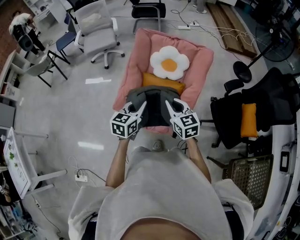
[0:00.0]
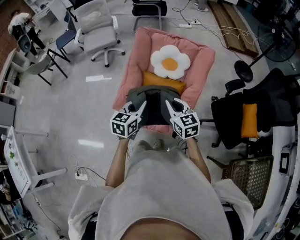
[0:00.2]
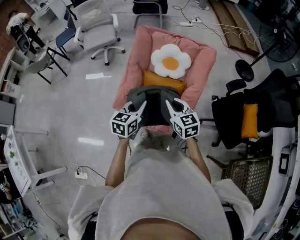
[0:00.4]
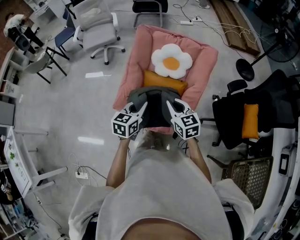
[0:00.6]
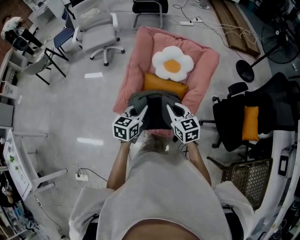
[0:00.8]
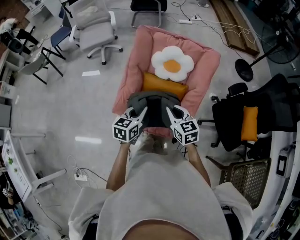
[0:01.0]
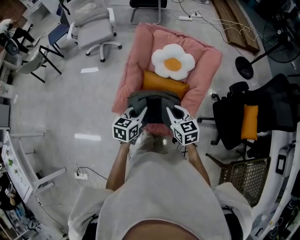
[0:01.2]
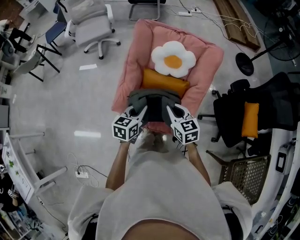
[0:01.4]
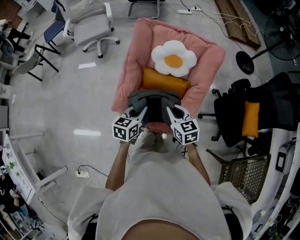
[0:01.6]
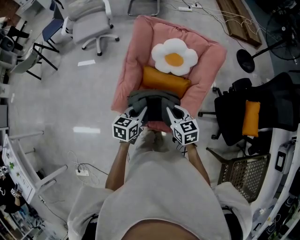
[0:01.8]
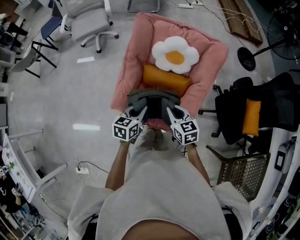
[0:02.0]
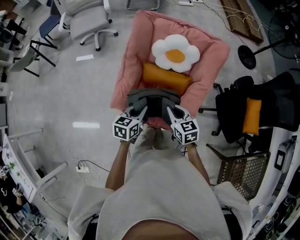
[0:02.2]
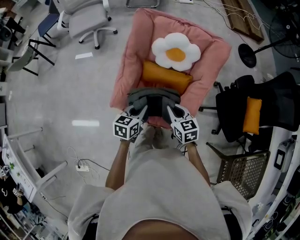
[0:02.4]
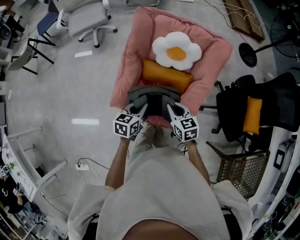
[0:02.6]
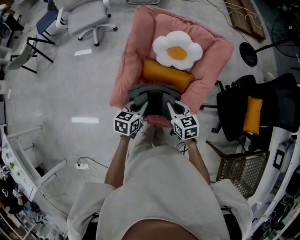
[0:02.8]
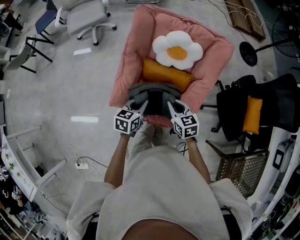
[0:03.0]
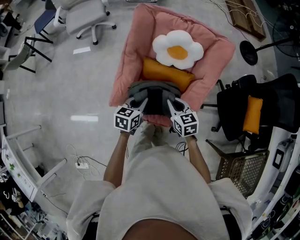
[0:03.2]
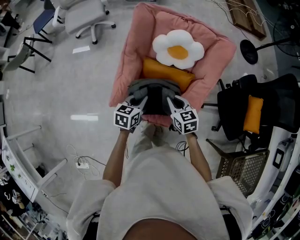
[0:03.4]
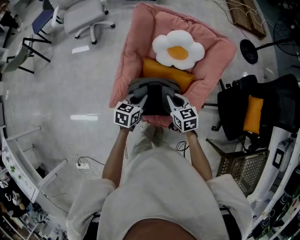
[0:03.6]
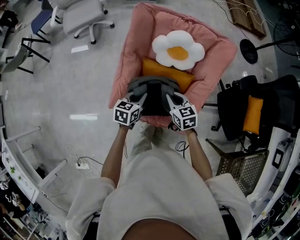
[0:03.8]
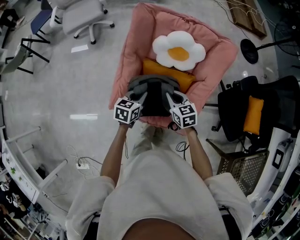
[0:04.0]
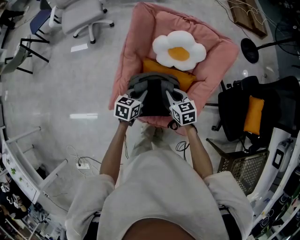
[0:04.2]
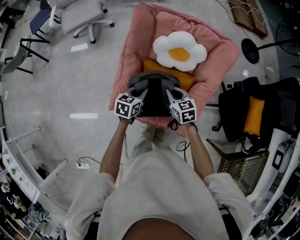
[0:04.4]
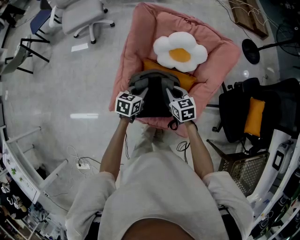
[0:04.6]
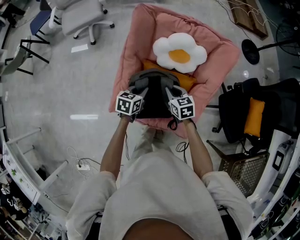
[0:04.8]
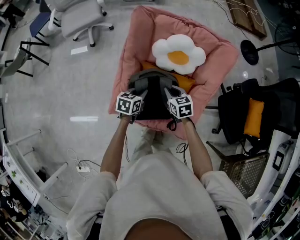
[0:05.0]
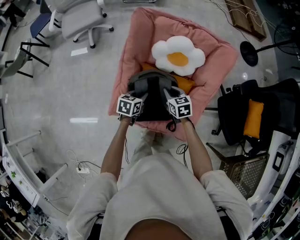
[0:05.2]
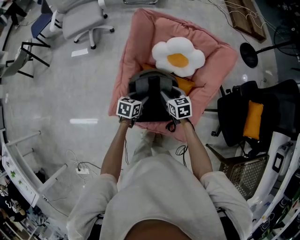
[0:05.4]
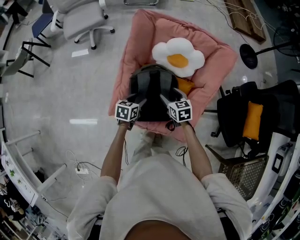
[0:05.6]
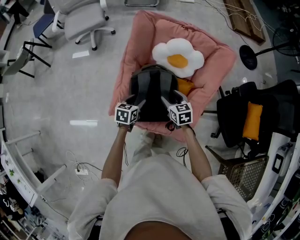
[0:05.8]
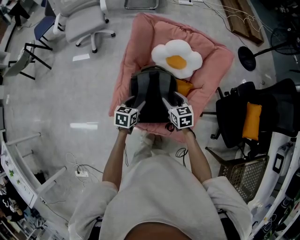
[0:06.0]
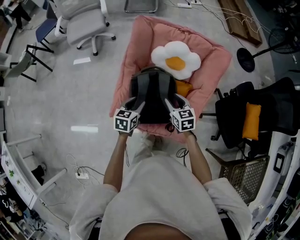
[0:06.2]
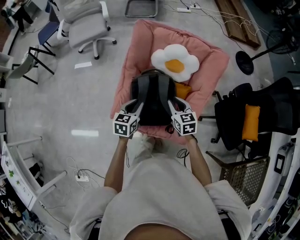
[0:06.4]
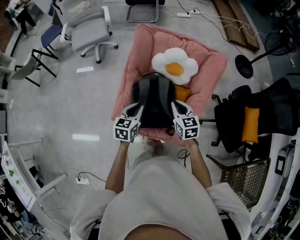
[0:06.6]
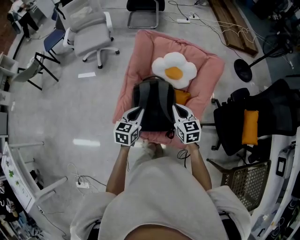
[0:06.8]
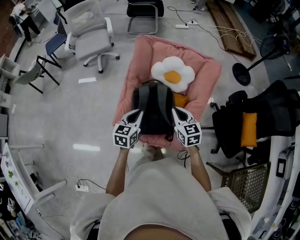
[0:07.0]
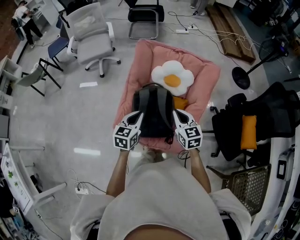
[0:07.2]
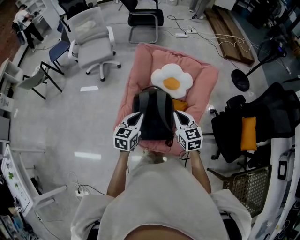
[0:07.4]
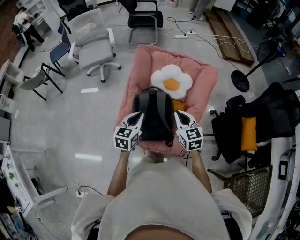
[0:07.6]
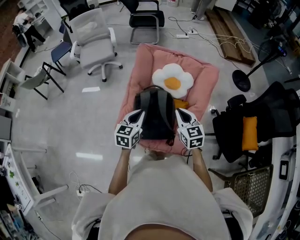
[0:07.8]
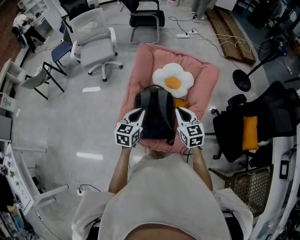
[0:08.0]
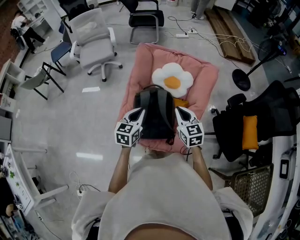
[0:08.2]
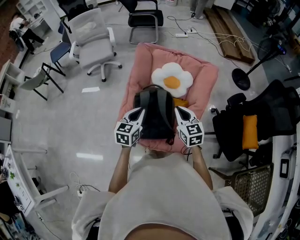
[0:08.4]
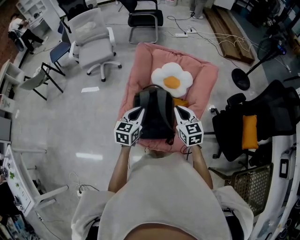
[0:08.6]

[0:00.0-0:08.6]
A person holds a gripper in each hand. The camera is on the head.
0:00.0 to 0:01.4: Both grippers travel together downward and forward, roughly 10 cm.
0:01.4 to 0:02.8: Both grippers move downward, about 10 cm.
0:02.8 to 0:04.4: Both grippers travel together forward and downward, about 10 cm.
0:04.4 to 0:05.8: The left gripper ends up approximately 5 cm from where it was, and opens its fingers, while the right gripper opens its fingers.
0:05.8 to 0:07.2: The left gripper shifts roughly 20 cm upward, swivels about 20 degrees, and closes up. The right gripper is displaced upward and backward by about 20 cm, rotates approximately 20 degrees, and closes up.
0:07.2 to 0:08.6: The grippers make only small movements.

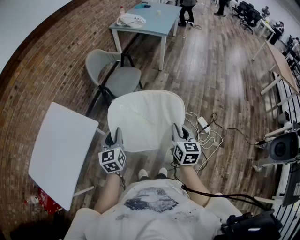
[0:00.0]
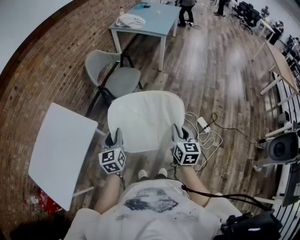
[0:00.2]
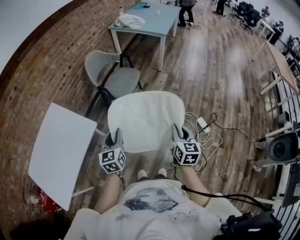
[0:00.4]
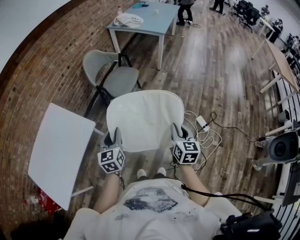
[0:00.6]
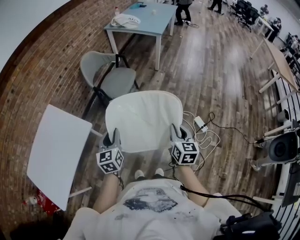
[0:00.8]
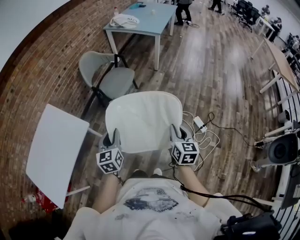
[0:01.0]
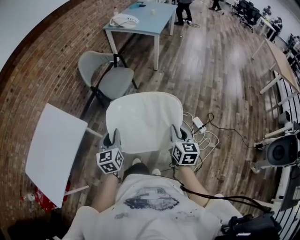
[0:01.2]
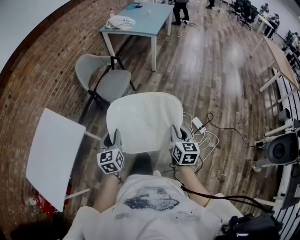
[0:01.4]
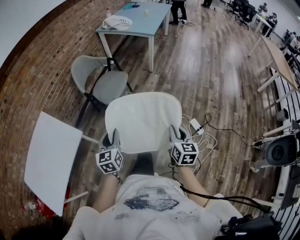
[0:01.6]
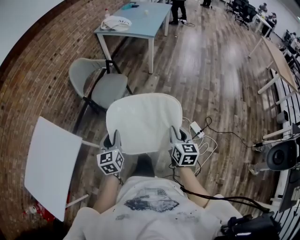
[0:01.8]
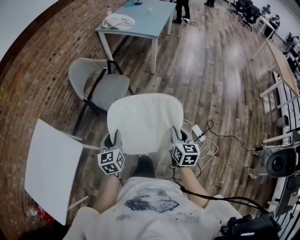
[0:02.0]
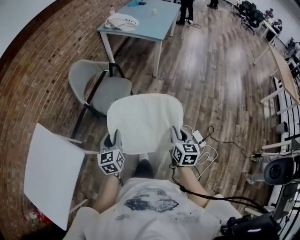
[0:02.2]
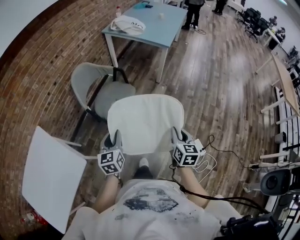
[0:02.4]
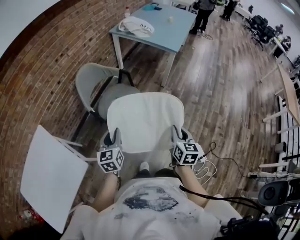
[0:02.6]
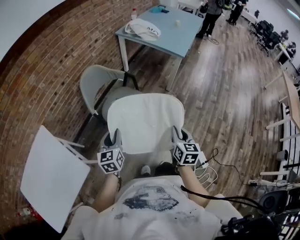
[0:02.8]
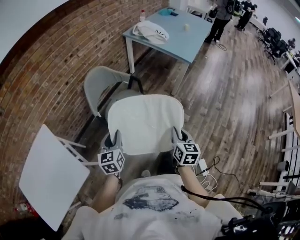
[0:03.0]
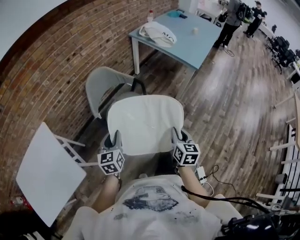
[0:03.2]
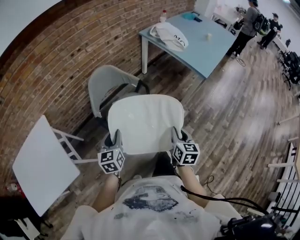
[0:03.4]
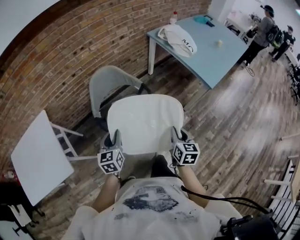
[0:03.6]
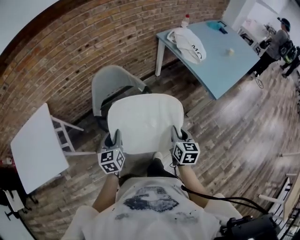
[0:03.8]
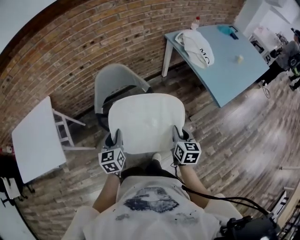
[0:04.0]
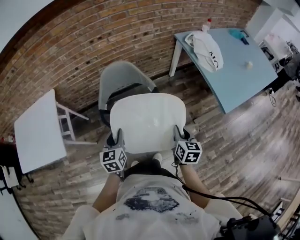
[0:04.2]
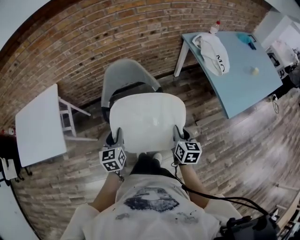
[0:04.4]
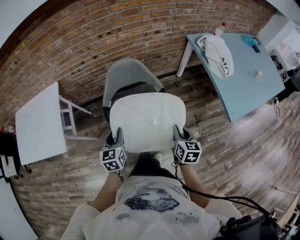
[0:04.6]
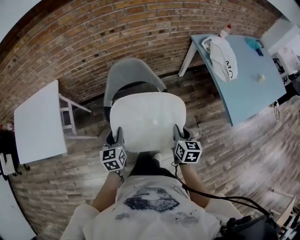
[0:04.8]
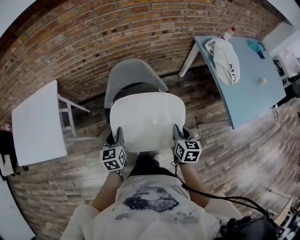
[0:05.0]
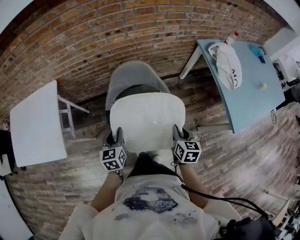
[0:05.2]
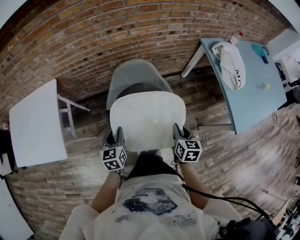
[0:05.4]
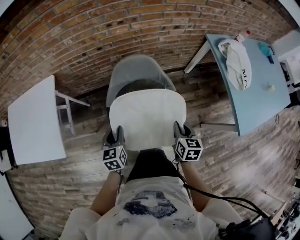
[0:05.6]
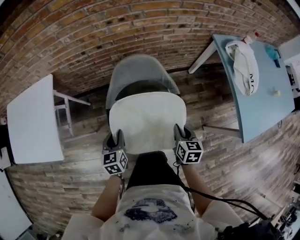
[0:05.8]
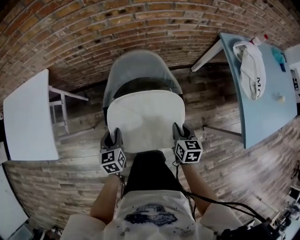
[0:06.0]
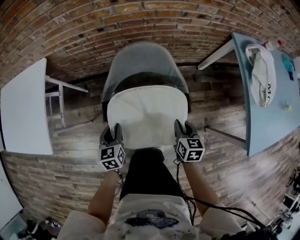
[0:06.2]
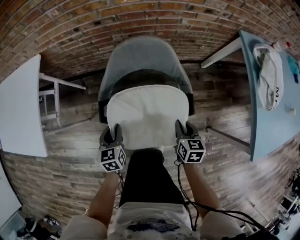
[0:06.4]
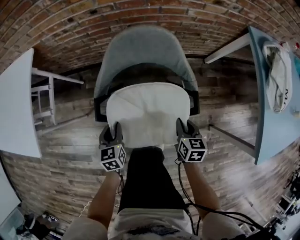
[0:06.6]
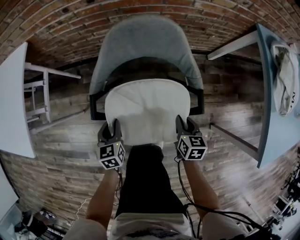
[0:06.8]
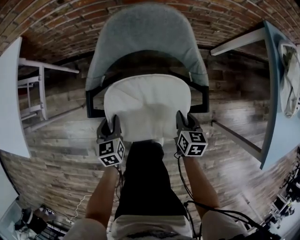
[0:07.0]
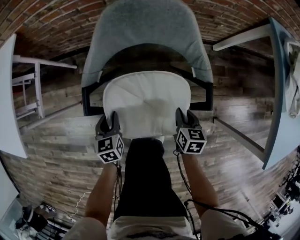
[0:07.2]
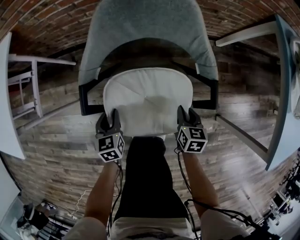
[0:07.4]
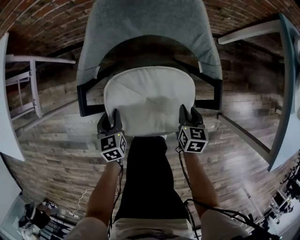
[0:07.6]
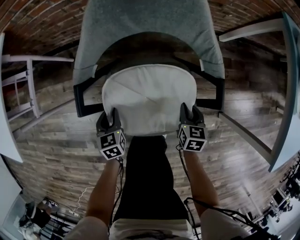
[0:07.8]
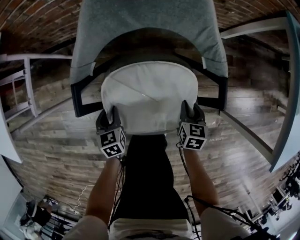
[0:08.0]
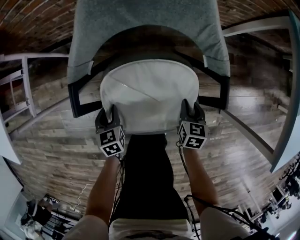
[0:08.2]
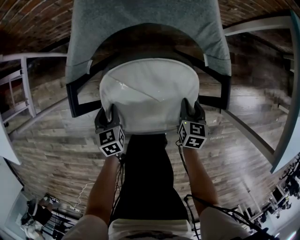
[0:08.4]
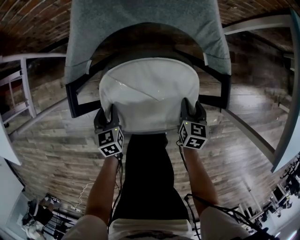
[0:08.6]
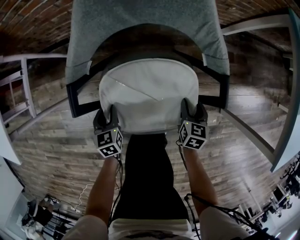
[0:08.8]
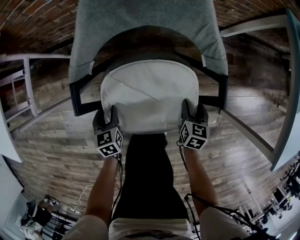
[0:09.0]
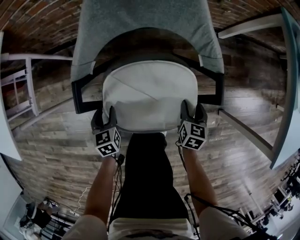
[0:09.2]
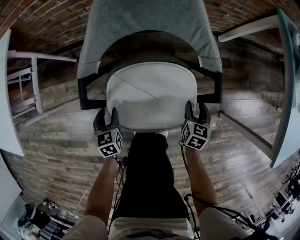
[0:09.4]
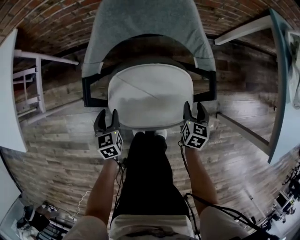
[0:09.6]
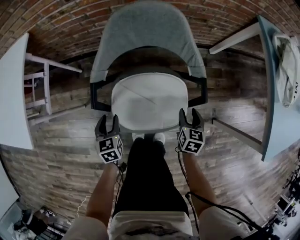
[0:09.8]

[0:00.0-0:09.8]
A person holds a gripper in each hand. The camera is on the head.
0:00.0 to 0:01.4: The two grippers go about 10 cm to the right.
0:01.4 to 0:02.8: Both grippers travel together forward, roughly 40 cm.
0:02.8 to 0:04.2: The left gripper changes place by roughly 25 cm, and turns by roughly 40 degrees. The right gripper changes place by some 40 cm, and changes its angle by approximately 40 degrees.
0:04.2 to 0:05.6: The left gripper heads forward, to the left and downward, covering about 15 cm. The right gripper travels forward and to the left by about 20 cm.
0:05.6 to 0:07.0: Both grippers travel together downward, some 30 cm.
0:07.0 to 0:08.4: The two grippers go some 10 cm downward.
0:08.4 to 0:09.8: The grippers both shift upward by roughly 10 cm. The right gripper opens.

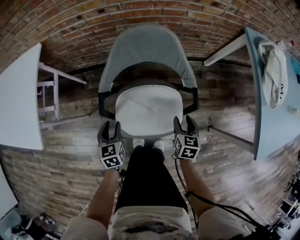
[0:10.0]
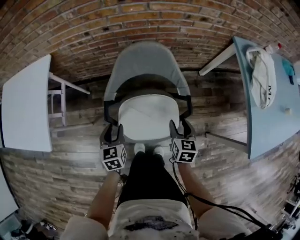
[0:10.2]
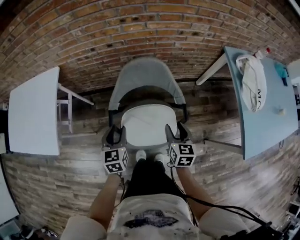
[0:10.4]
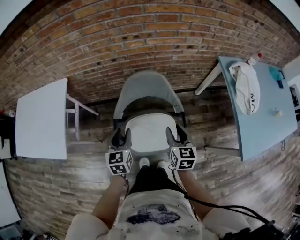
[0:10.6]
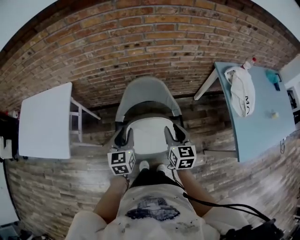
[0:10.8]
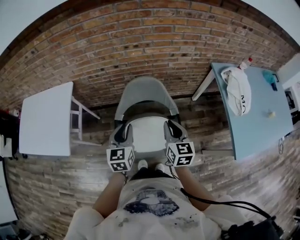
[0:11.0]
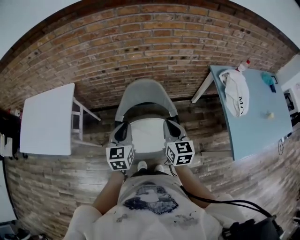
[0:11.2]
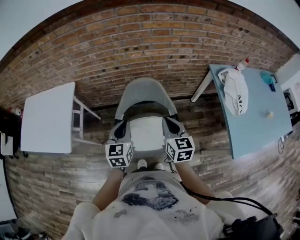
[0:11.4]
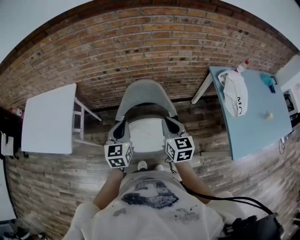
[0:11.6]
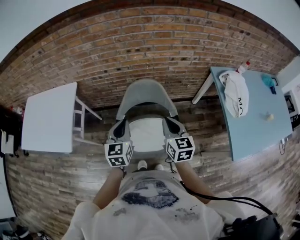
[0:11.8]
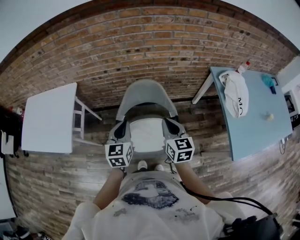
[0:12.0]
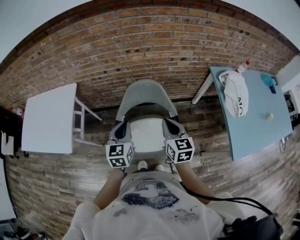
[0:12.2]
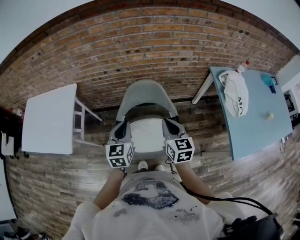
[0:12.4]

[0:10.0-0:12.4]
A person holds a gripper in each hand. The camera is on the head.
0:10.0 to 0:11.2: The two grippers go about 40 cm upward. The right gripper changes its angle by approximately 30 degrees, and closes. Meanwhile the left gripper swivels roughly 20 degrees, and closes up.
0:11.2 to 0:12.4: The grippers make only small movements.

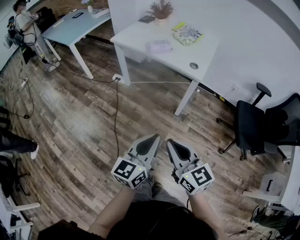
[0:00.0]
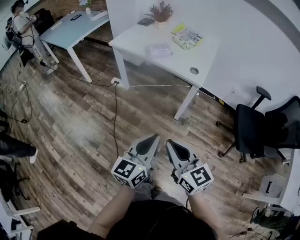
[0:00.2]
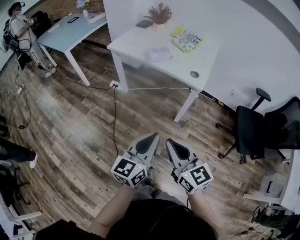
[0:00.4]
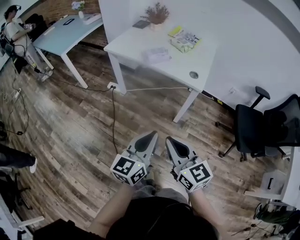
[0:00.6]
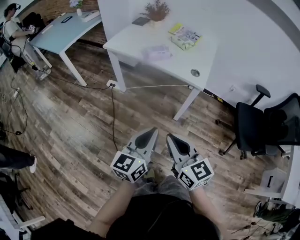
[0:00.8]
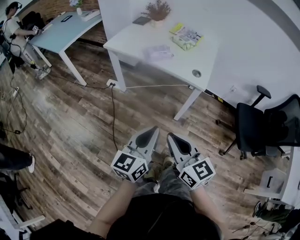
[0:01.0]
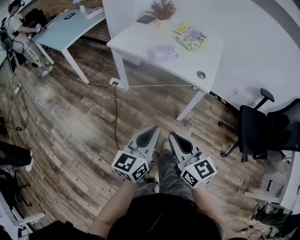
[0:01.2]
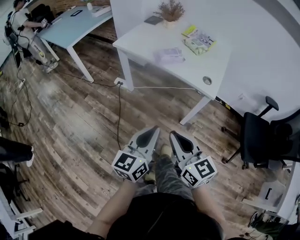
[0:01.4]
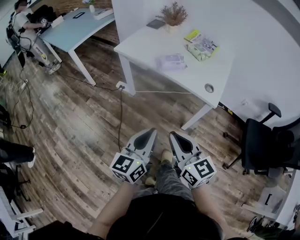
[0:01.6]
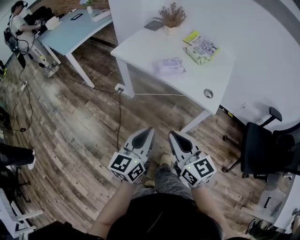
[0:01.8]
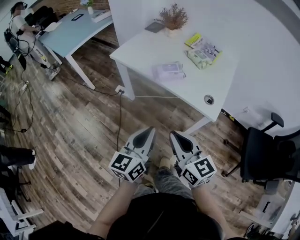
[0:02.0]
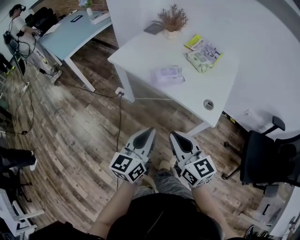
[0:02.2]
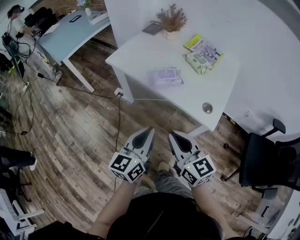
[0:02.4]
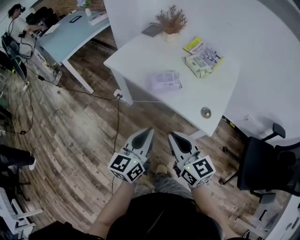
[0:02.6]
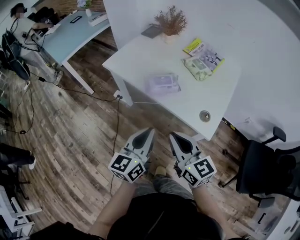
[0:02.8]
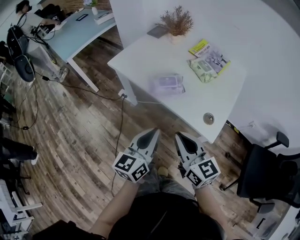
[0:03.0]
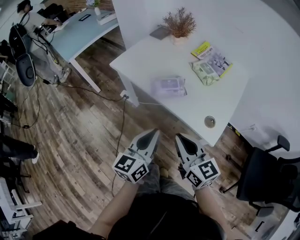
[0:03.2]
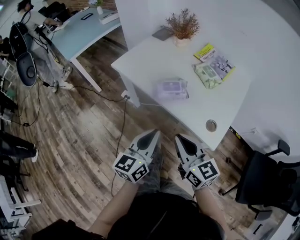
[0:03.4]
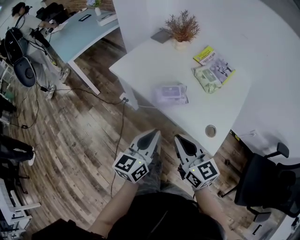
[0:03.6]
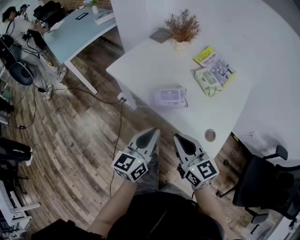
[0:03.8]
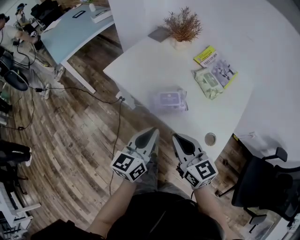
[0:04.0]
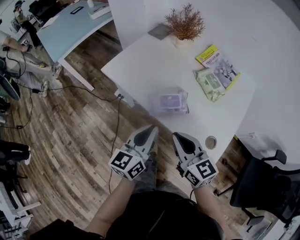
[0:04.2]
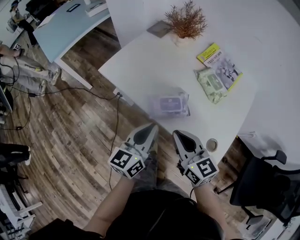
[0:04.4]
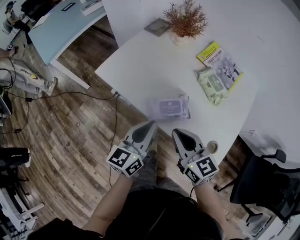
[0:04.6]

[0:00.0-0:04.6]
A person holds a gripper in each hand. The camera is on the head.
0:00.0 to 0:01.6: Both grippers move forward, roughly 20 cm.
0:01.6 to 0:03.0: Both grippers move forward and to the right, roughly 20 cm.
0:03.0 to 0:04.6: The two grippers go roughly 20 cm forward.
